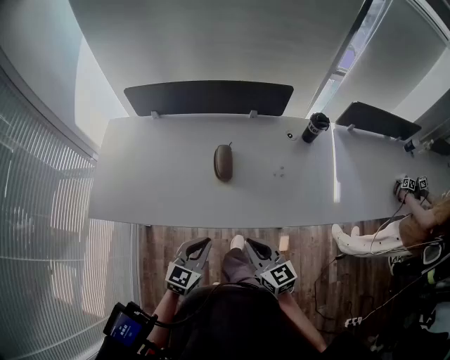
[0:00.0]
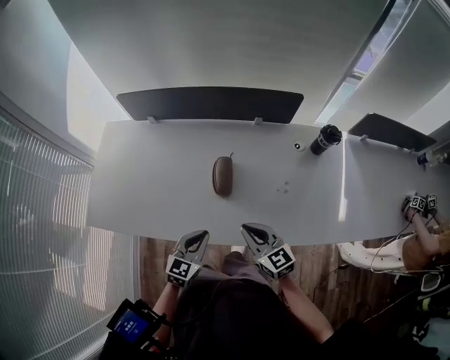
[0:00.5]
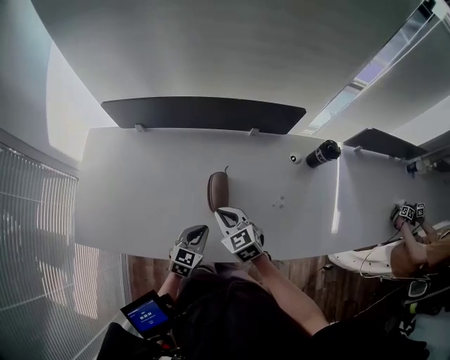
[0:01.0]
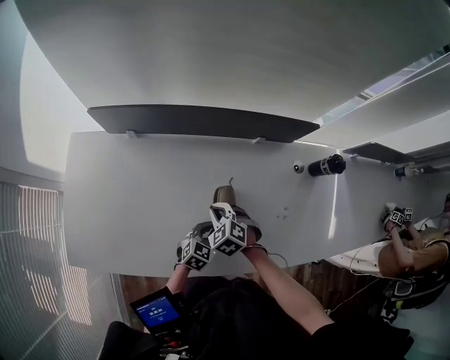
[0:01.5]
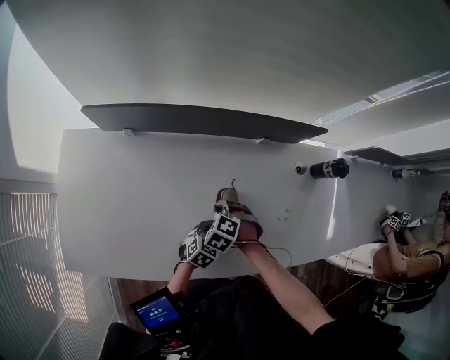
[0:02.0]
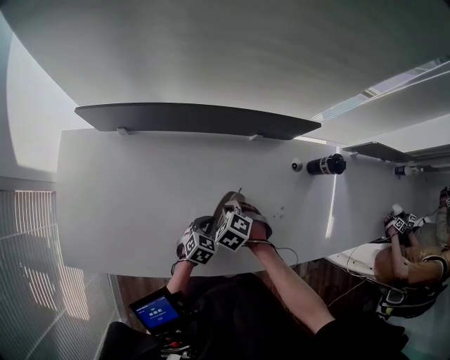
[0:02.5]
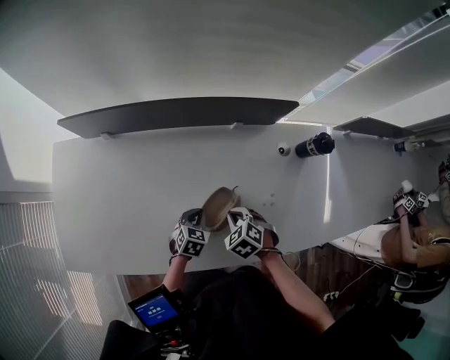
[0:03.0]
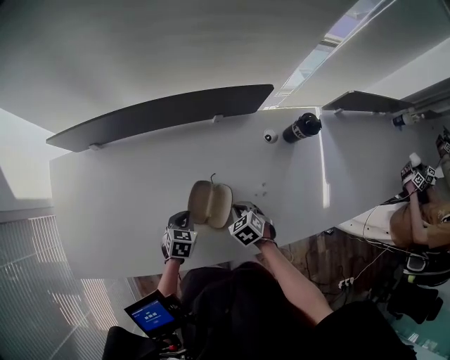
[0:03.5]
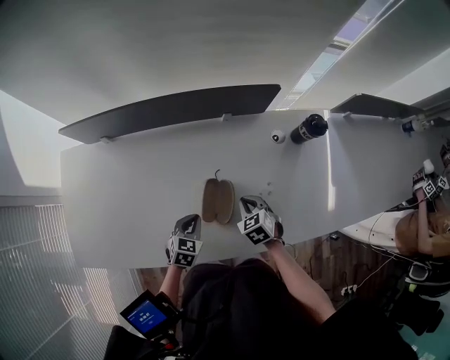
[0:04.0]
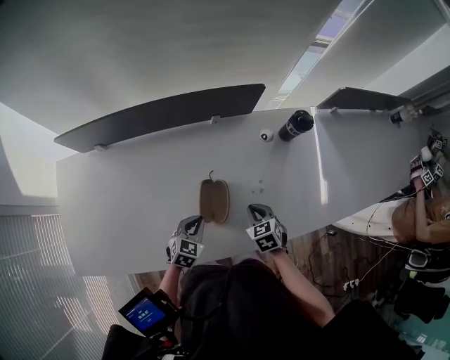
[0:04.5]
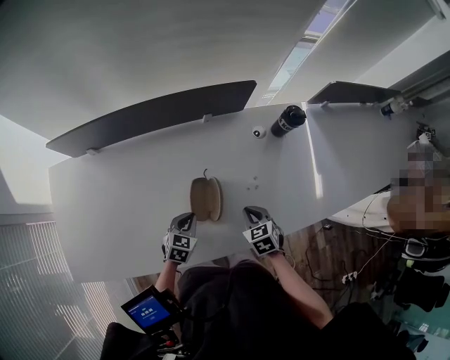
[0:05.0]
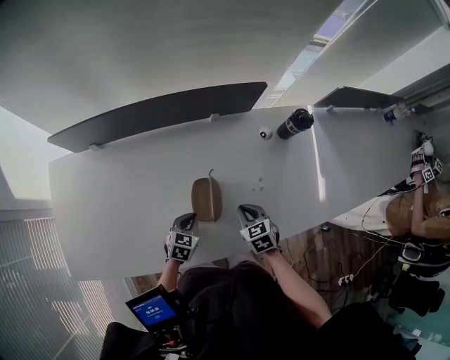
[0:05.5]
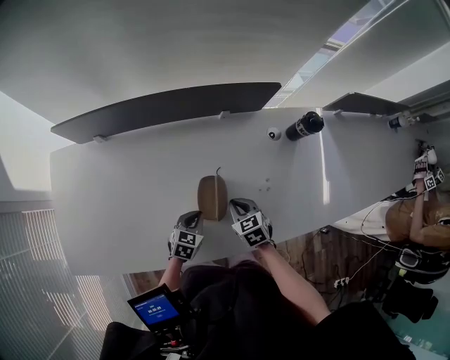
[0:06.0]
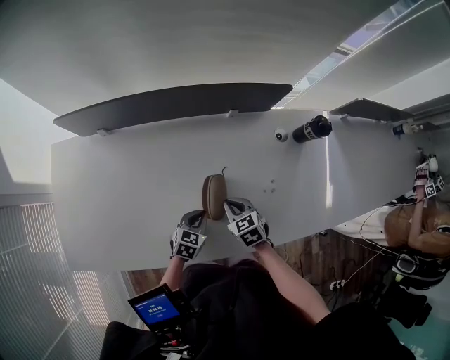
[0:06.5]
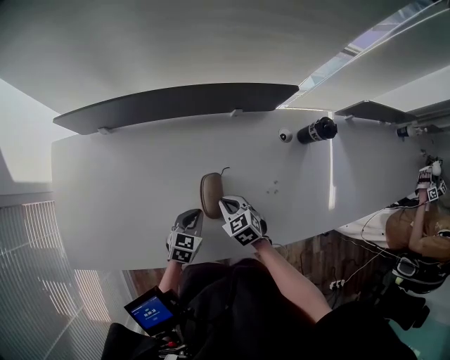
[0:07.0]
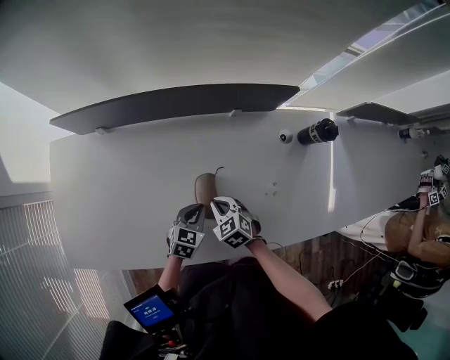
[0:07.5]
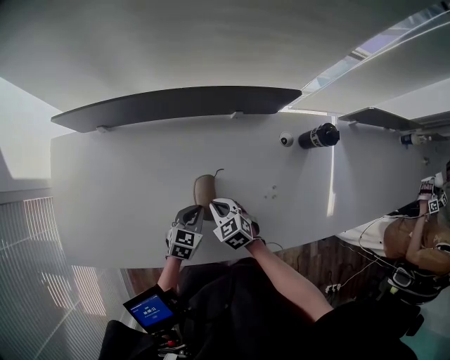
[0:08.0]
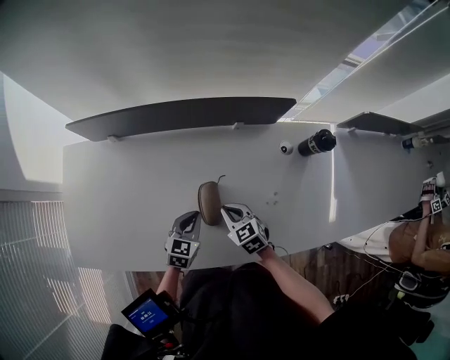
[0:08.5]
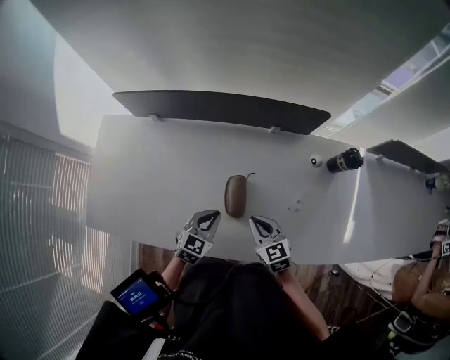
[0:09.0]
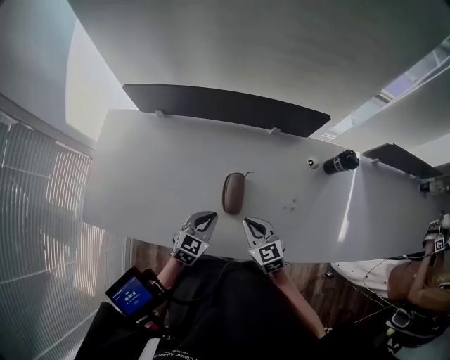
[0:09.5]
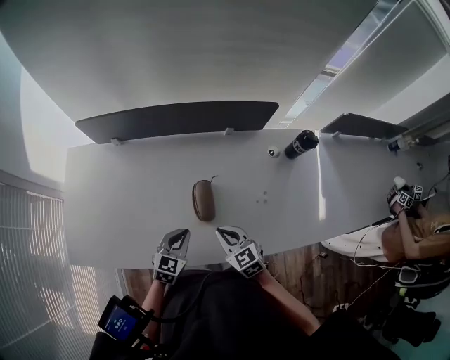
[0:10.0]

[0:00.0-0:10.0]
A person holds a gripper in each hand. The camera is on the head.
0:00.0 to 0:02.0: The right gripper moves approximately 40 cm, and points its fingers approximately 60 degrees further downward. Meanwhile the left gripper ends up roughly 35 cm from where it was, and swivels about 30 degrees.
0:02.0 to 0:04.0: The left gripper moves about 5 cm, while the right gripper swings up and down, roughly 5 cm each way, with 2 reversals, and turns by approximately 40 degrees.
0:06.0 to 0:08.0: The right gripper shifts approximately 10 cm to the left.
0:08.0 to 0:10.0: The left gripper travels upward, backward and to the left by about 15 cm. The right gripper shifts approximately 15 cm backward and upward.
